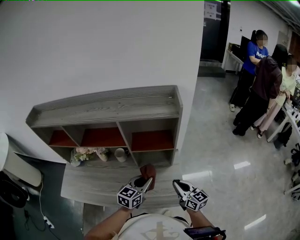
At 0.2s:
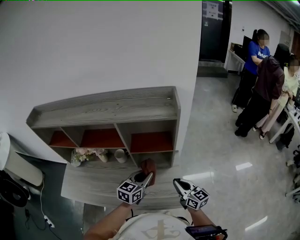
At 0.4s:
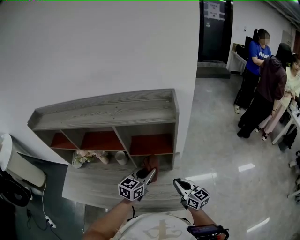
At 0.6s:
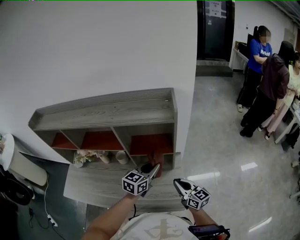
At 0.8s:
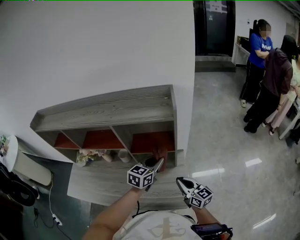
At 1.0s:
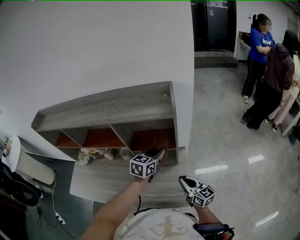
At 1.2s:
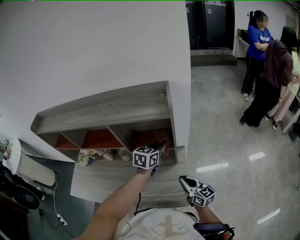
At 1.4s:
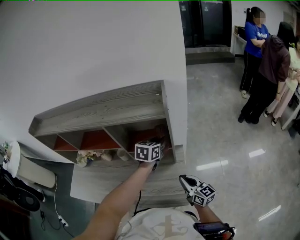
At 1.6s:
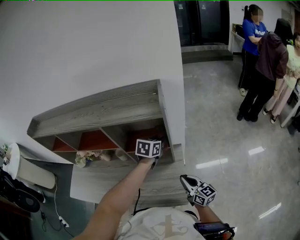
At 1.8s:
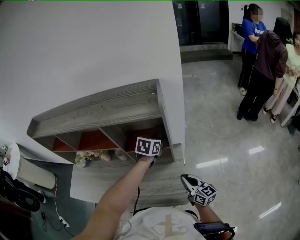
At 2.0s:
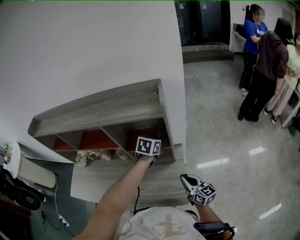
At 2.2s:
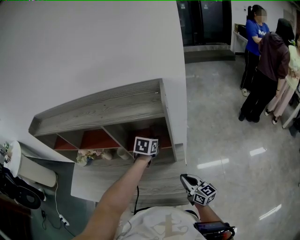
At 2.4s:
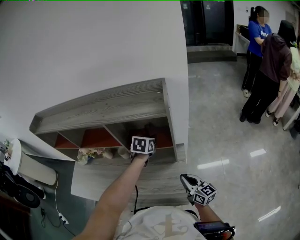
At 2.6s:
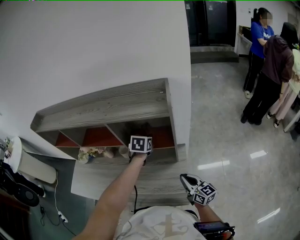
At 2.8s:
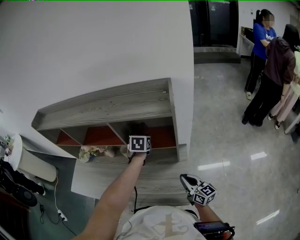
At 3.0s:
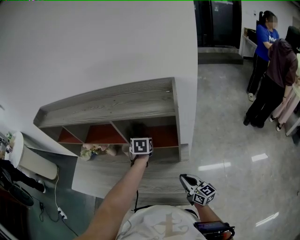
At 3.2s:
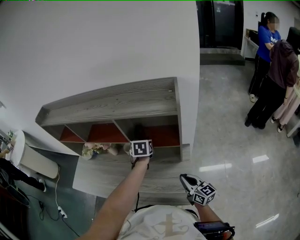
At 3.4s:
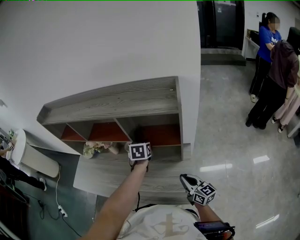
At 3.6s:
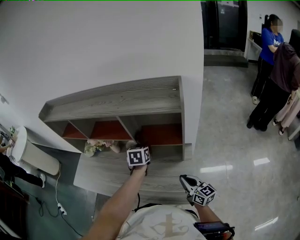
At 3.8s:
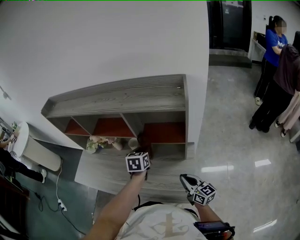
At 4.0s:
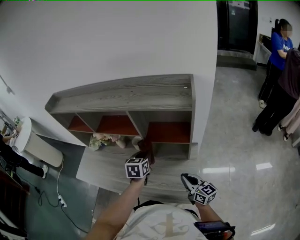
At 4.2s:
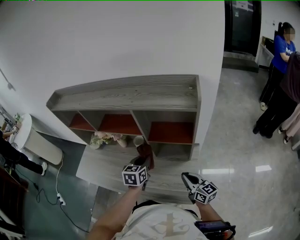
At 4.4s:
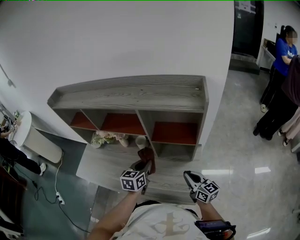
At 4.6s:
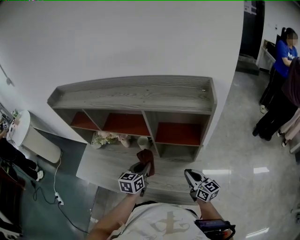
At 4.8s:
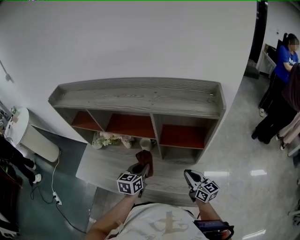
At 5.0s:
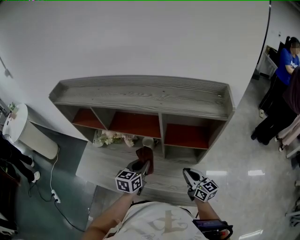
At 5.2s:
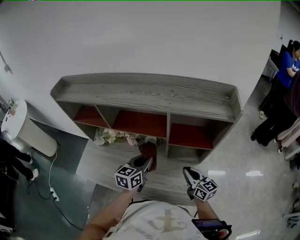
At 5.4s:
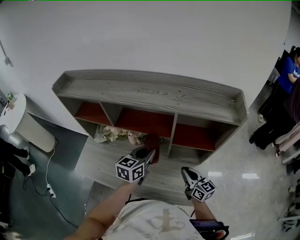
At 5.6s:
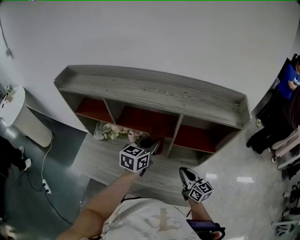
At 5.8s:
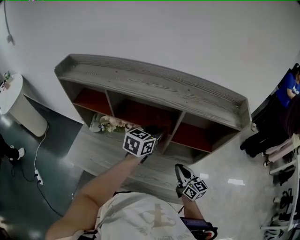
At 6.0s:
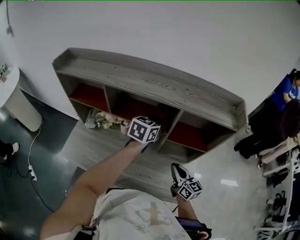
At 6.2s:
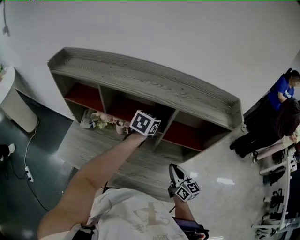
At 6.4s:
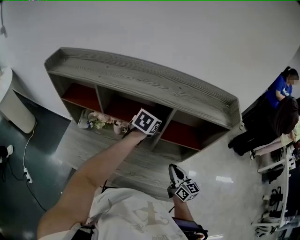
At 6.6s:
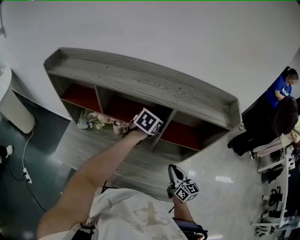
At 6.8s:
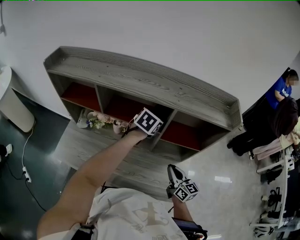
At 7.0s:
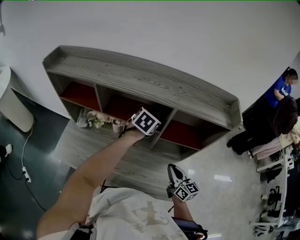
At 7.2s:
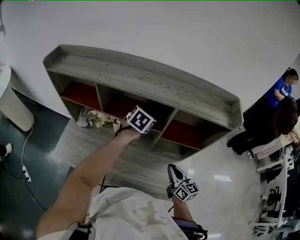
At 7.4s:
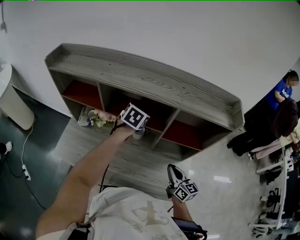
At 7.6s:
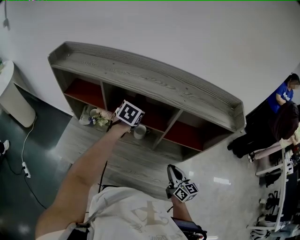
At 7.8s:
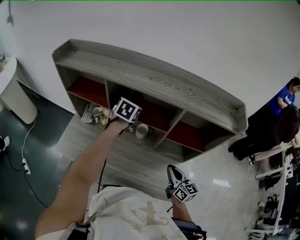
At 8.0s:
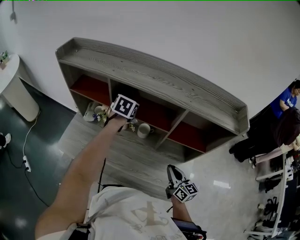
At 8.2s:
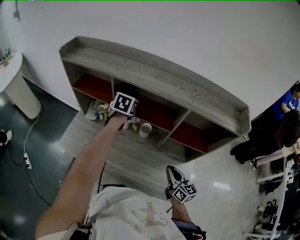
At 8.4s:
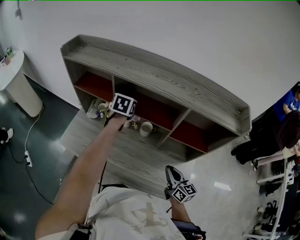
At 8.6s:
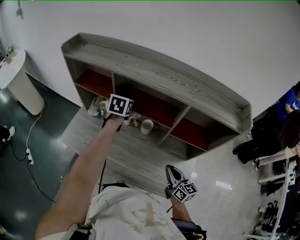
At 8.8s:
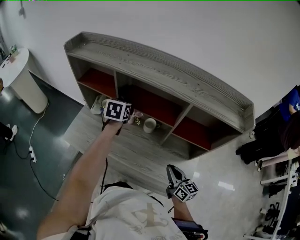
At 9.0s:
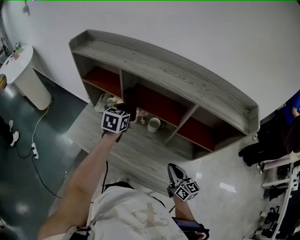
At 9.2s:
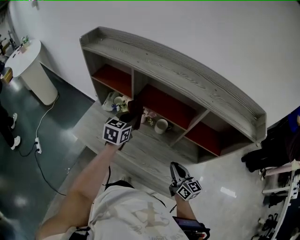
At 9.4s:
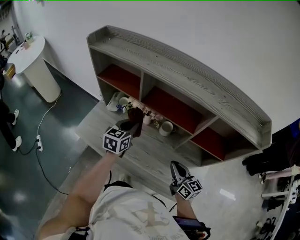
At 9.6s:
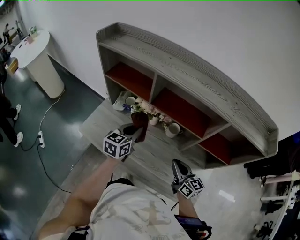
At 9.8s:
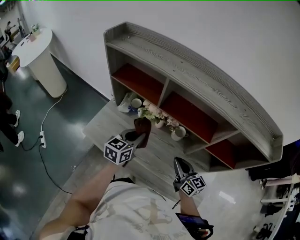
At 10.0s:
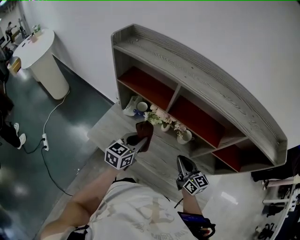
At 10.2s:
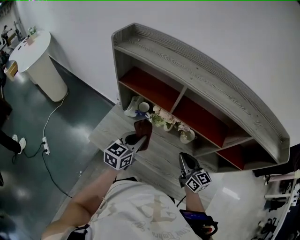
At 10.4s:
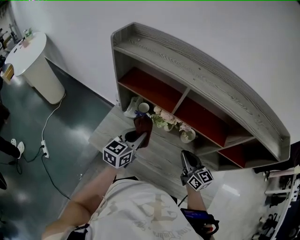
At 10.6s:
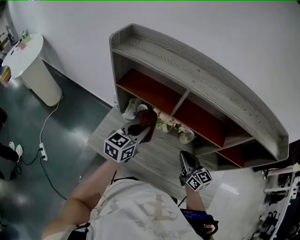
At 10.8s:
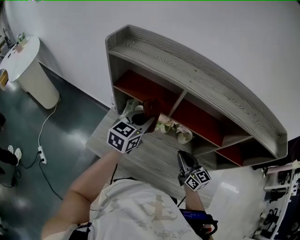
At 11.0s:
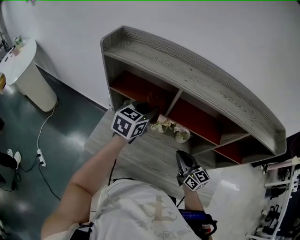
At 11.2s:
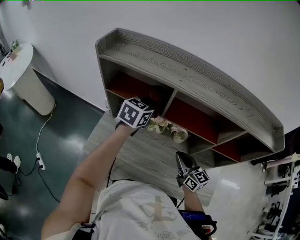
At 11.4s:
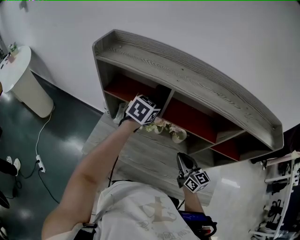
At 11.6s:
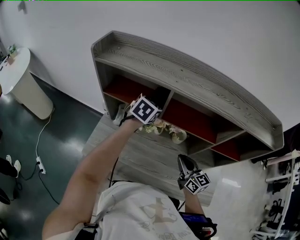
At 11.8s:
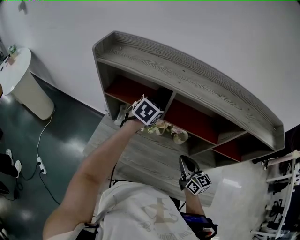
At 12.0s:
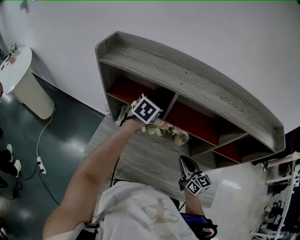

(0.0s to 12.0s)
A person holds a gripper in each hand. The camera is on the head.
0.0s - 1.6s: The right gripper heads to the right, covering approximately 5 cm, while the left gripper heads forward and to the right, covering some 25 cm.
1.6s - 3.0s: The left gripper is displaced to the left by approximately 15 cm, and changes its angle by some 30 degrees.
3.0s - 4.4s: The left gripper is displaced backward and to the left by some 20 cm, and rotates roughly 20 degrees. The right gripper moves approximately 5 cm.
4.4s - 6.0s: The right gripper is displaced to the left and forward by approximately 15 cm, while the left gripper travels forward and upward by some 20 cm.
6.0s - 7.6s: The left gripper is displaced to the left, forward and downward by some 10 cm, and changes its angle by roughly 20 degrees.
7.6s - 9.0s: The left gripper is displaced to the left and backward by some 15 cm, and swivels about 20 degrees.
9.0s - 10.4s: The left gripper goes approximately 15 cm to the left; the right gripper shifts some 25 cm to the left and forward.
10.4s - 12.0s: The left gripper travels forward and to the right by roughly 20 cm, and swivels some 30 degrees.

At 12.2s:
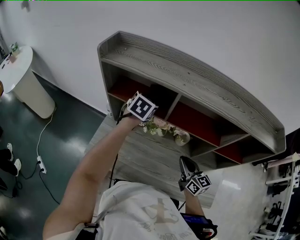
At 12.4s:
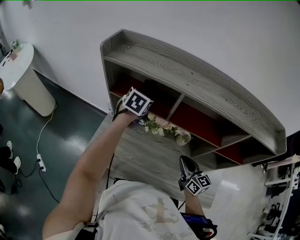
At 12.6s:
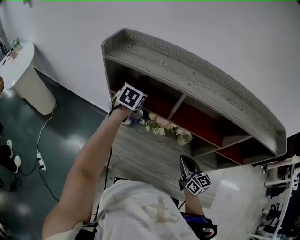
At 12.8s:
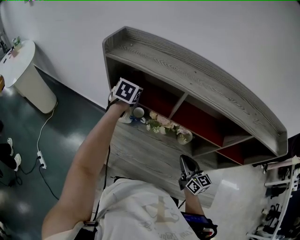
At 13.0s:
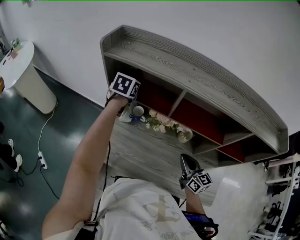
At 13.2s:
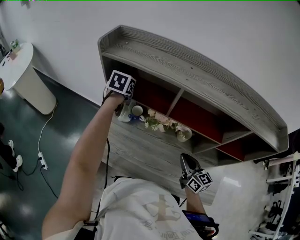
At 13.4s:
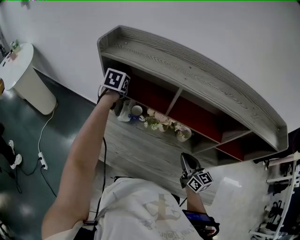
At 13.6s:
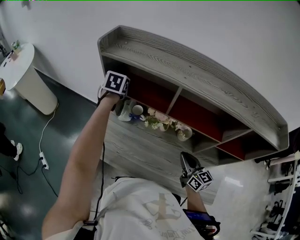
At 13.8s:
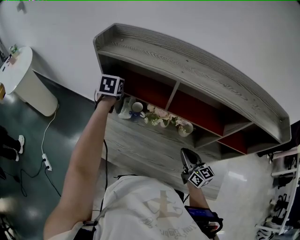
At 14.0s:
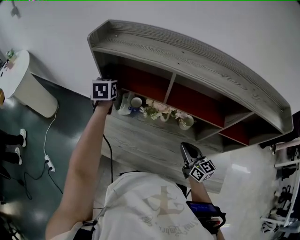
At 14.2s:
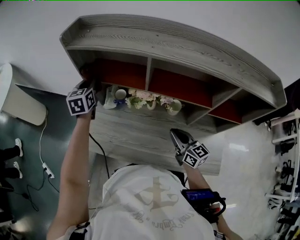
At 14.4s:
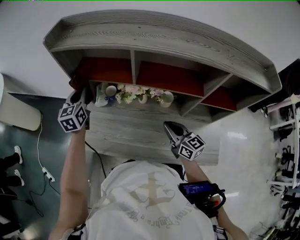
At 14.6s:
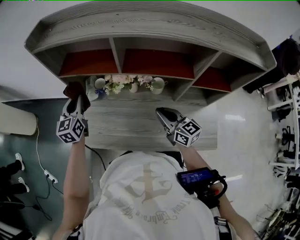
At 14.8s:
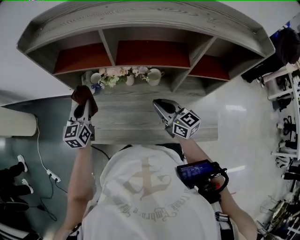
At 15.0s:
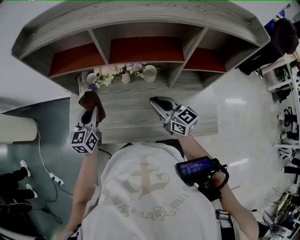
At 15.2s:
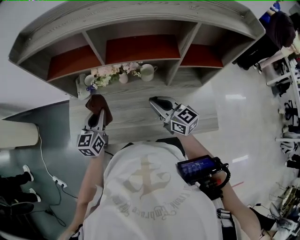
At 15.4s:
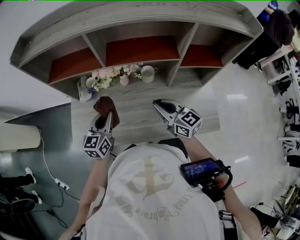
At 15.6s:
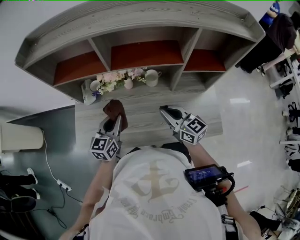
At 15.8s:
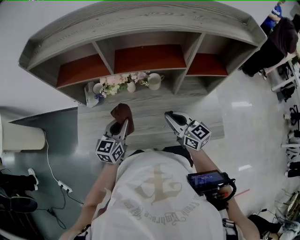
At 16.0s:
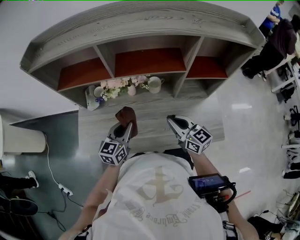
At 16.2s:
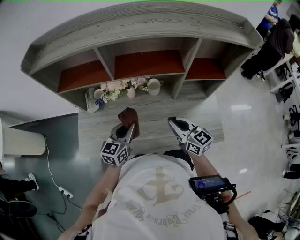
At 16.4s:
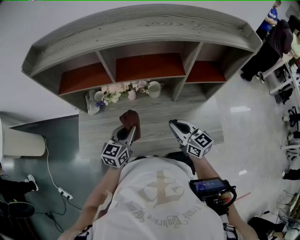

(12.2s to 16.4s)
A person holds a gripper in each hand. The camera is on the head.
12.2s - 13.6s: The left gripper moves to the left and forward, roughly 15 cm, and changes its angle by roughly 20 degrees.
13.6s - 15.0s: The left gripper is displaced backward by some 25 cm, and rotates some 30 degrees.
15.0s - 16.4s: The left gripper shifts about 15 cm to the right and backward, and rotates about 20 degrees, while the right gripper is displaced backward by some 5 cm.

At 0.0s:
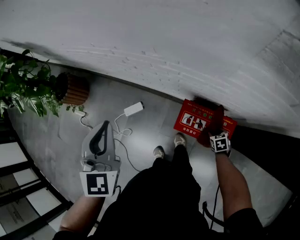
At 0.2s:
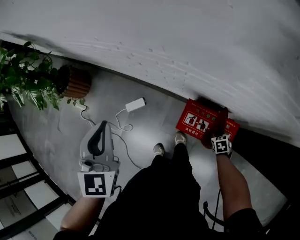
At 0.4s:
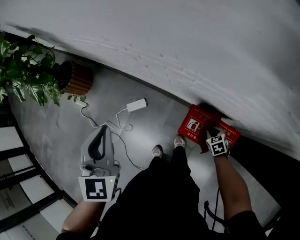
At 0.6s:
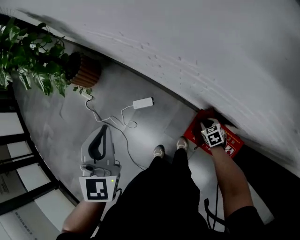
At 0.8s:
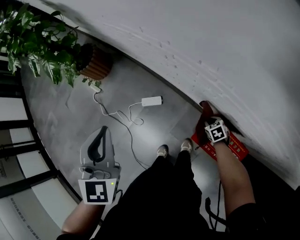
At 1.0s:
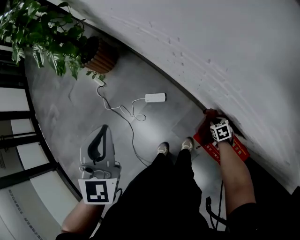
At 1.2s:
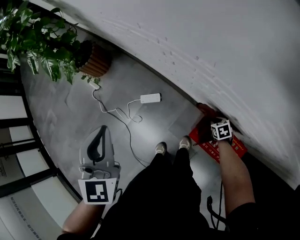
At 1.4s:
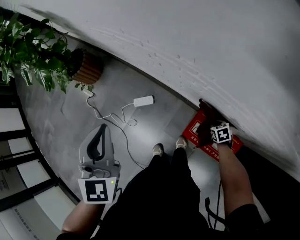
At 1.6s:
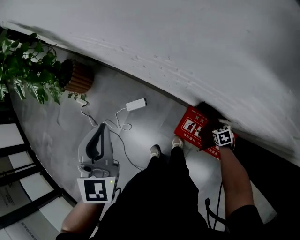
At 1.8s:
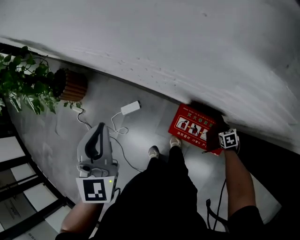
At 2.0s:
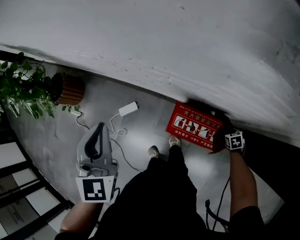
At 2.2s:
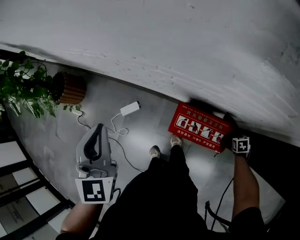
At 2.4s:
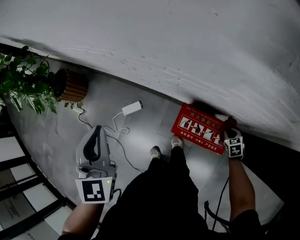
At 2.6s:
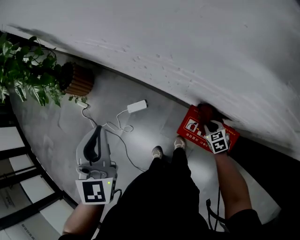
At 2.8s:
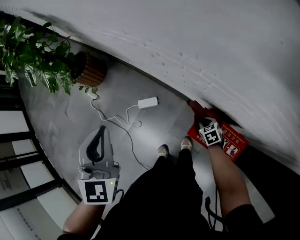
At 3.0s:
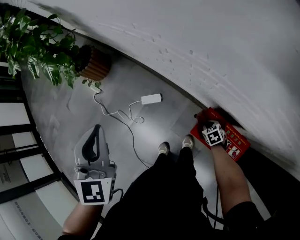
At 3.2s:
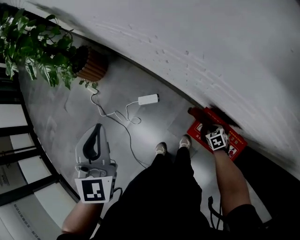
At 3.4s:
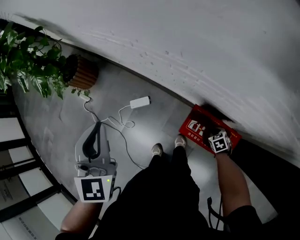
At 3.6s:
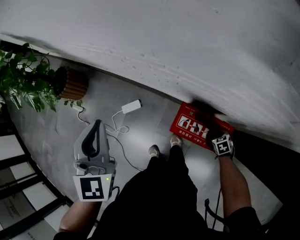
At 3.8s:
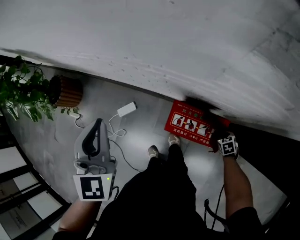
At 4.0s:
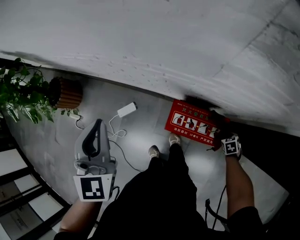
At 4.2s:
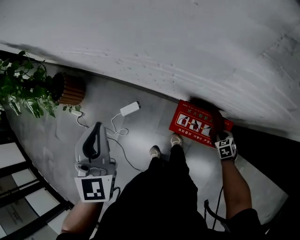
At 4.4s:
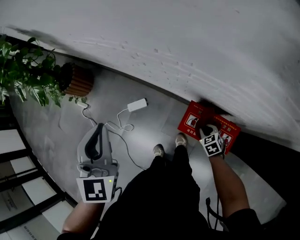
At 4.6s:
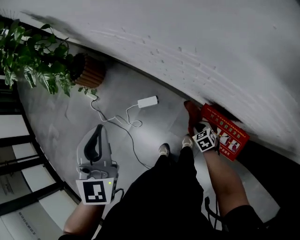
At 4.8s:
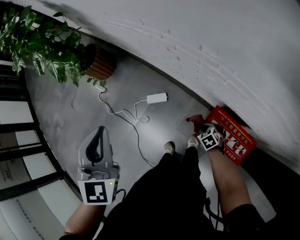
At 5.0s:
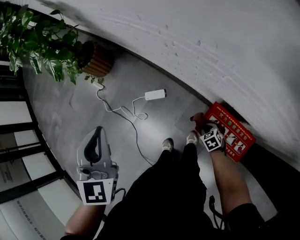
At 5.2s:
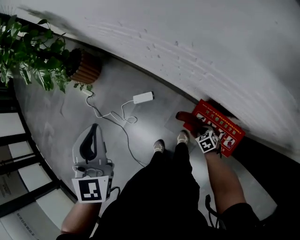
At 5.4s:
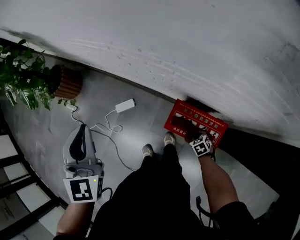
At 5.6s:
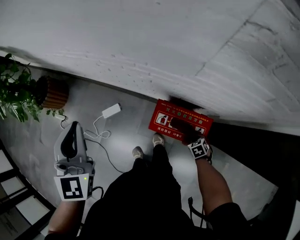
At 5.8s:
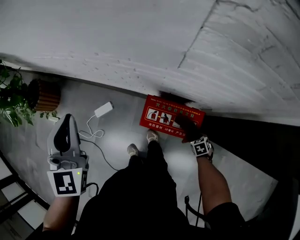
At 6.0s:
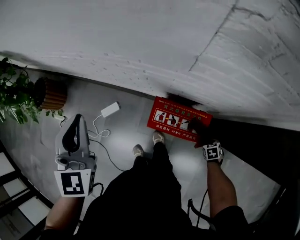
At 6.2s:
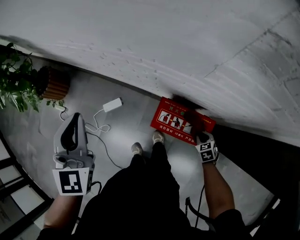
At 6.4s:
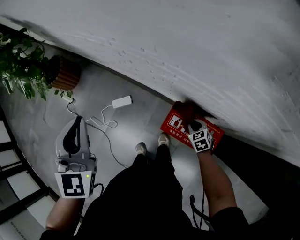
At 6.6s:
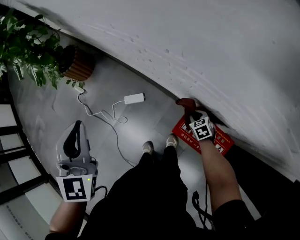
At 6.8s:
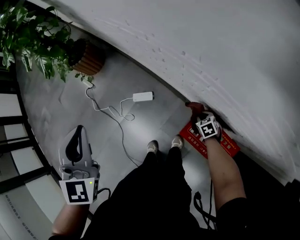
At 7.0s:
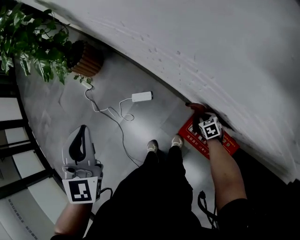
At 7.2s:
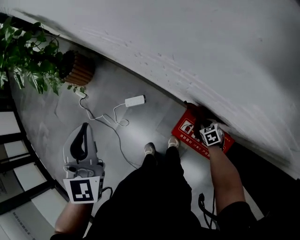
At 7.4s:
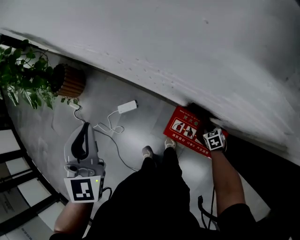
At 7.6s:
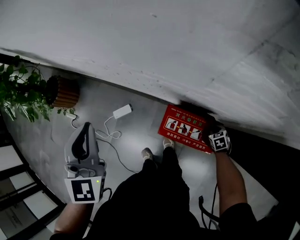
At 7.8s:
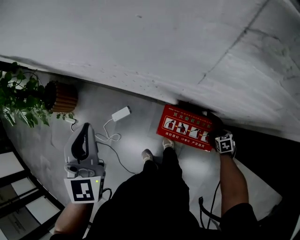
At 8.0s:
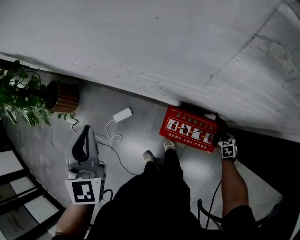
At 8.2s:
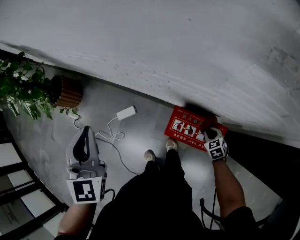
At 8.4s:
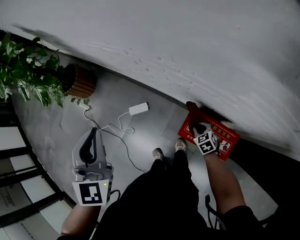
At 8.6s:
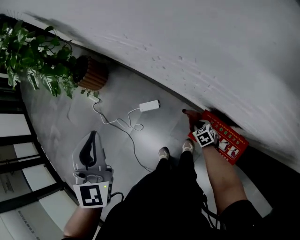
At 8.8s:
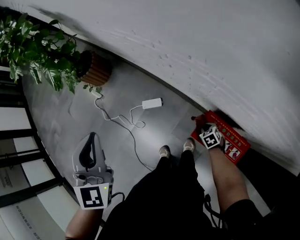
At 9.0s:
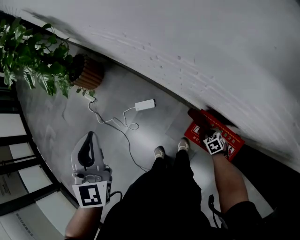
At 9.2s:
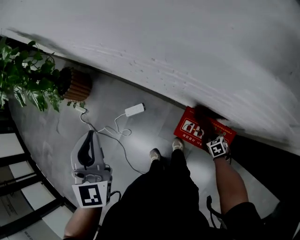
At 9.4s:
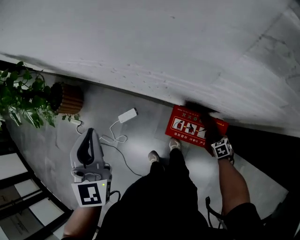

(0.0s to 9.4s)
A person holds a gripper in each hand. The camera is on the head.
0.0s - 1.6s: The right gripper closes its fingers.
1.6s - 3.2s: The left gripper moves about 10 cm; the right gripper goes upward and returns, roughly 5 cm each way.
4.8s - 6.2s: The right gripper ends up about 25 cm from where it was, and swivels approximately 30 degrees, while the left gripper ends up about 15 cm from where it was.
